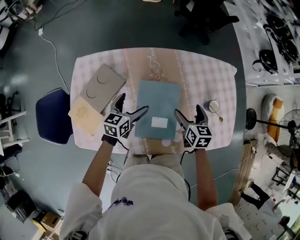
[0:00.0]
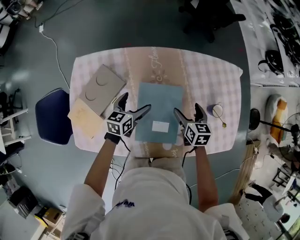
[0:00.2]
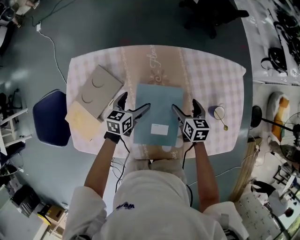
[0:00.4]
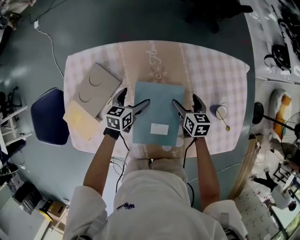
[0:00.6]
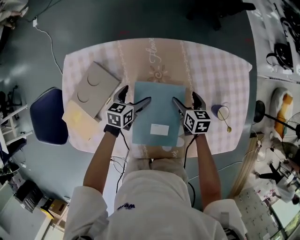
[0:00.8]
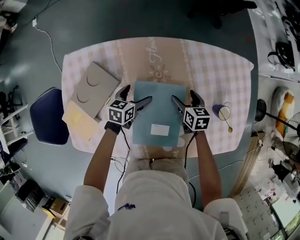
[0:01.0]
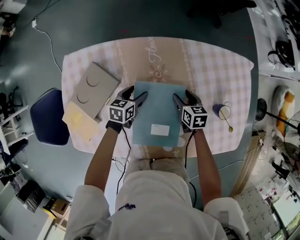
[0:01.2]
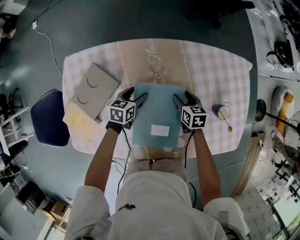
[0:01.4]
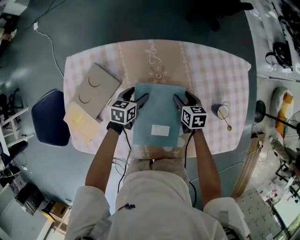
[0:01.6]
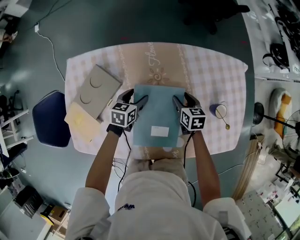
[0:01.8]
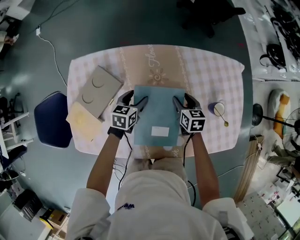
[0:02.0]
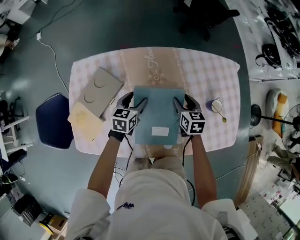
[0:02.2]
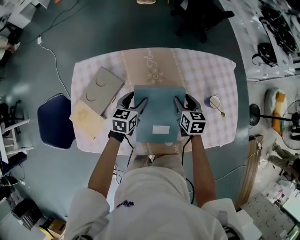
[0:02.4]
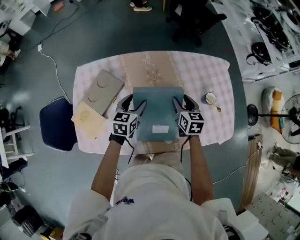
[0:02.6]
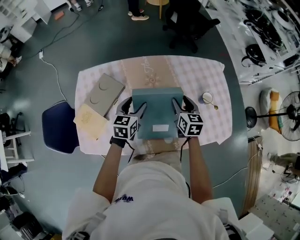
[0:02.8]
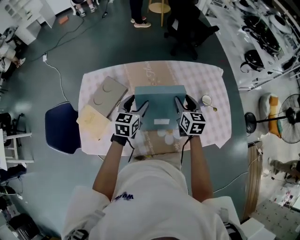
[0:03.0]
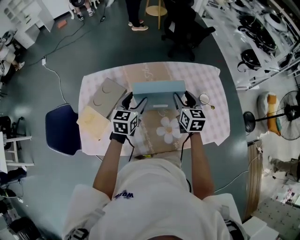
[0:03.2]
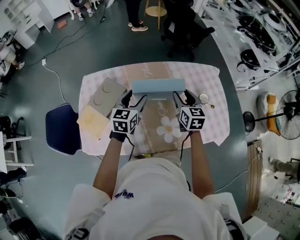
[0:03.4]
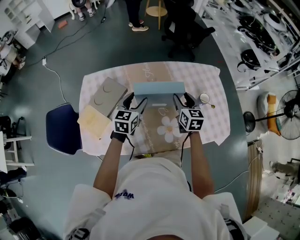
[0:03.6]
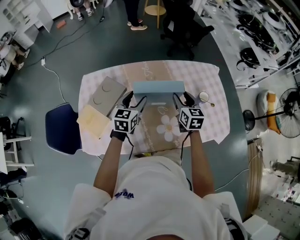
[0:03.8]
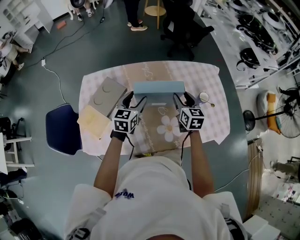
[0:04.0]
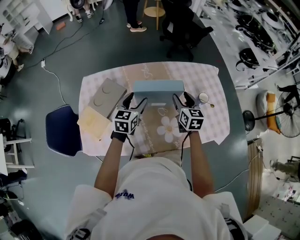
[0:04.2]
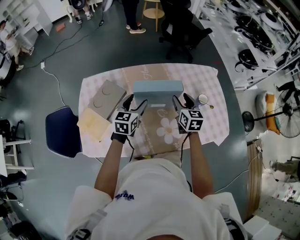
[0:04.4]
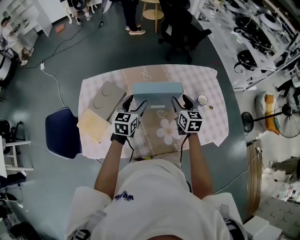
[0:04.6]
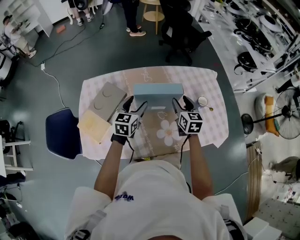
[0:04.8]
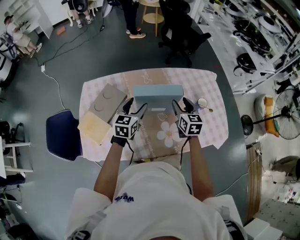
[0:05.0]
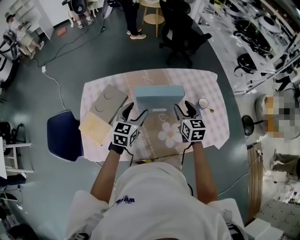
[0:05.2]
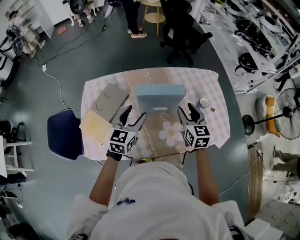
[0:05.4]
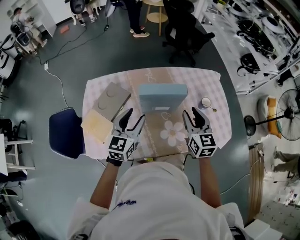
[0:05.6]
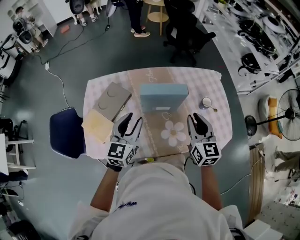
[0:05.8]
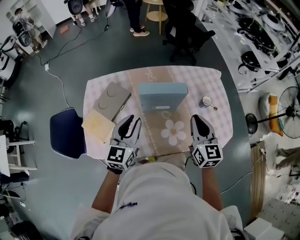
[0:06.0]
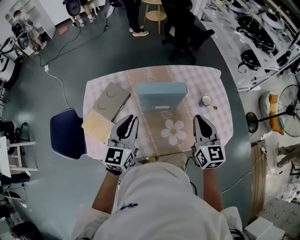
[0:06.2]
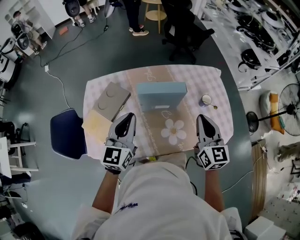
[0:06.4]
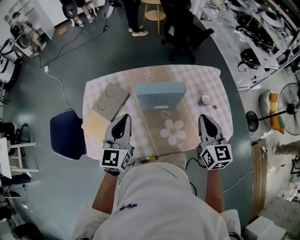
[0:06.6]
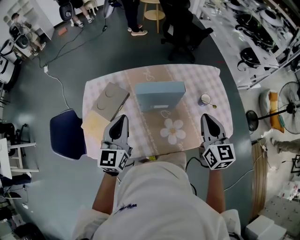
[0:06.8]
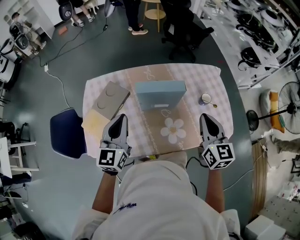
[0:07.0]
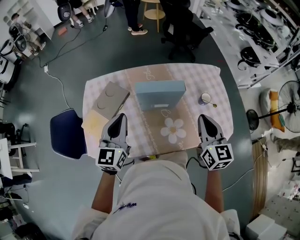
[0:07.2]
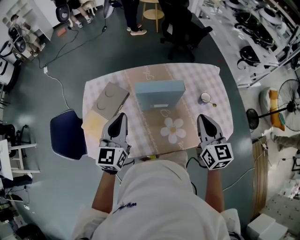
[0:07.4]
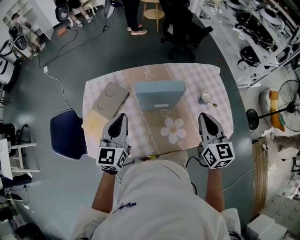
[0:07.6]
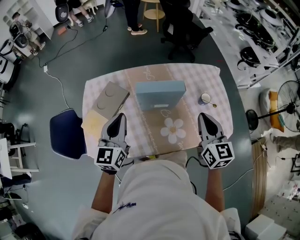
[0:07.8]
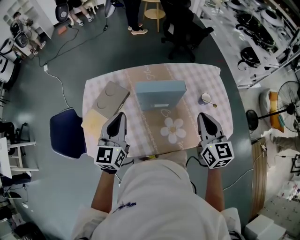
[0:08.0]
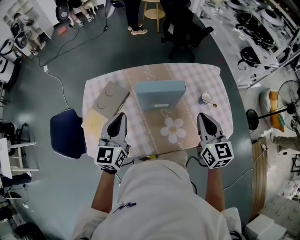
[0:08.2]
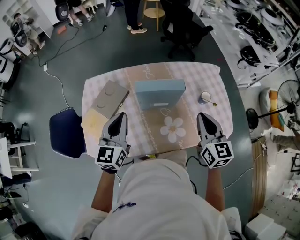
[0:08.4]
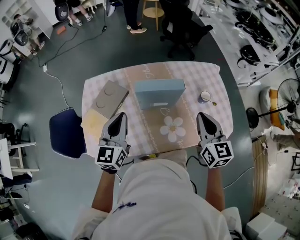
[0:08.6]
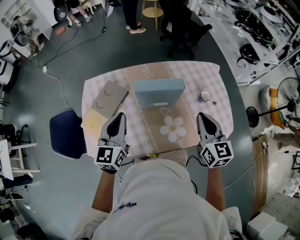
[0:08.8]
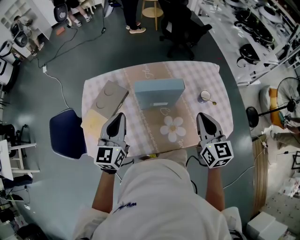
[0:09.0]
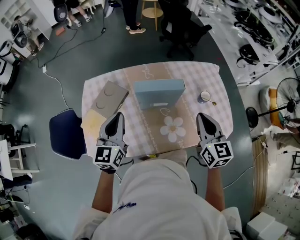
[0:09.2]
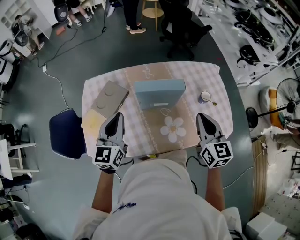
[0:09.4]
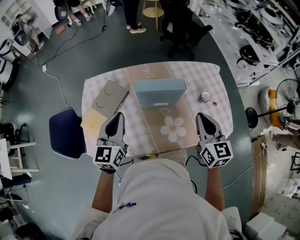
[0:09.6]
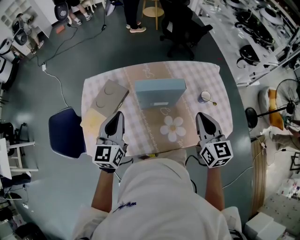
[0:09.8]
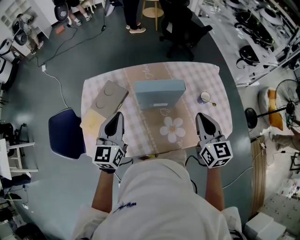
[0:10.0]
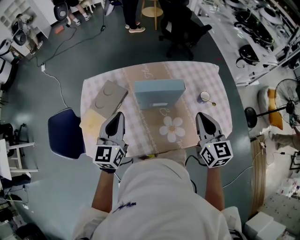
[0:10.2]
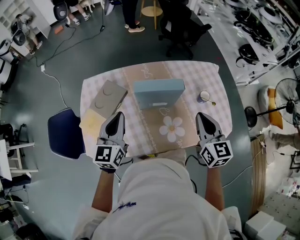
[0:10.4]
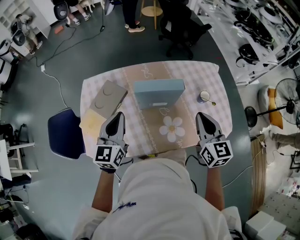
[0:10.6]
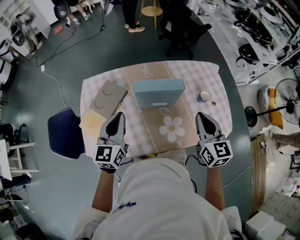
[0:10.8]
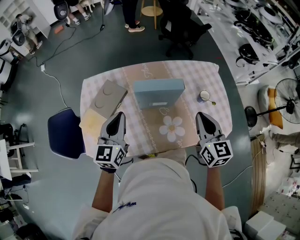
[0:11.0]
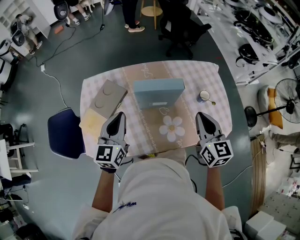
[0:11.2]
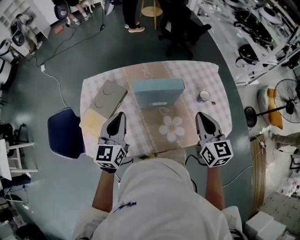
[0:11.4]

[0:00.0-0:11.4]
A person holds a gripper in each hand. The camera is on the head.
0:00.0 to 0:01.4: Both grippers travel together downward and forward, roughly 15 cm. The left gripper closes up, while the right gripper closes.
0:01.4 to 0:02.8: Both grippers move upward and backward, some 20 cm. The right gripper changes its angle by approximately 30 degrees. Meanwhile the left gripper swivels roughly 20 degrees.
0:04.2 to 0:05.6: Both grippers travel together backward and upward, approximately 10 cm.
0:05.6 to 0:07.2: The left gripper travels upward by about 5 cm, and closes up; the right gripper changes place by some 10 cm.
0:07.2 to 0:08.6: Both grippers stay about where they are.
0:08.6 to 0:11.4: The grippers stay close to where they were, moving slightly.

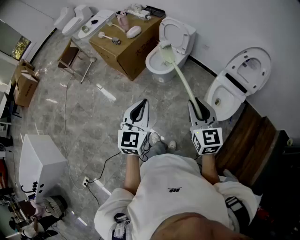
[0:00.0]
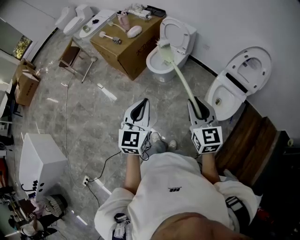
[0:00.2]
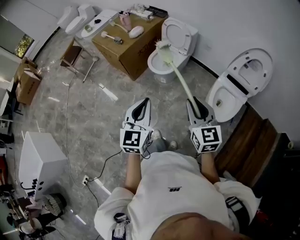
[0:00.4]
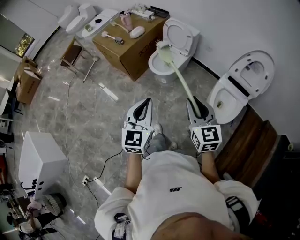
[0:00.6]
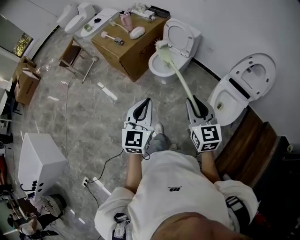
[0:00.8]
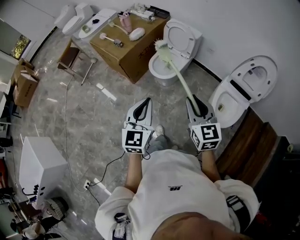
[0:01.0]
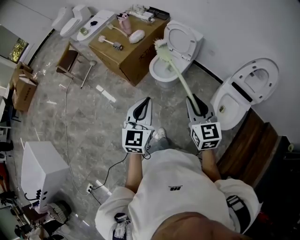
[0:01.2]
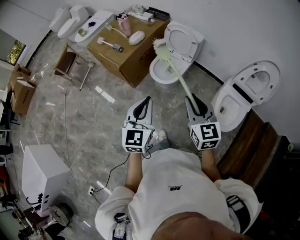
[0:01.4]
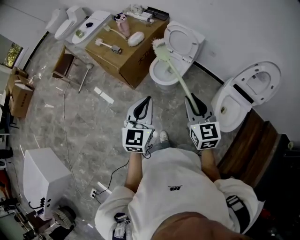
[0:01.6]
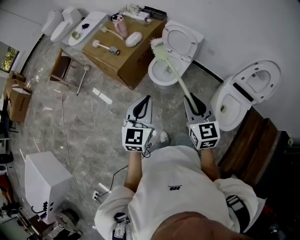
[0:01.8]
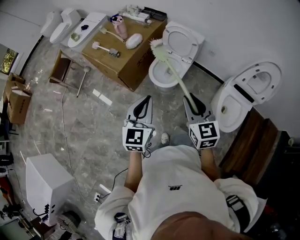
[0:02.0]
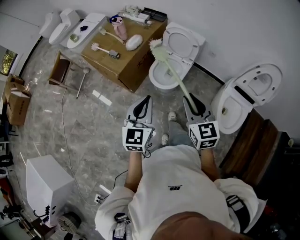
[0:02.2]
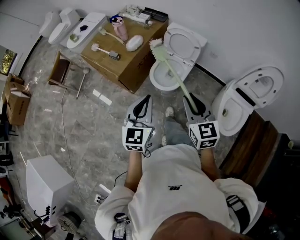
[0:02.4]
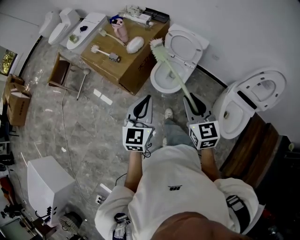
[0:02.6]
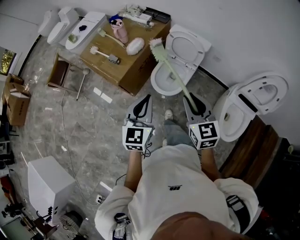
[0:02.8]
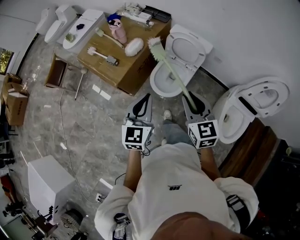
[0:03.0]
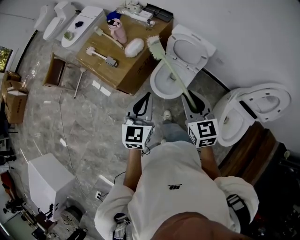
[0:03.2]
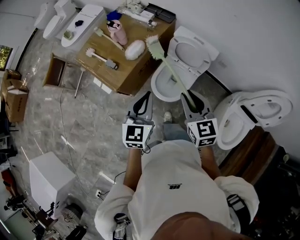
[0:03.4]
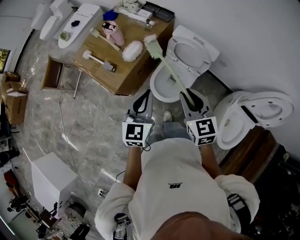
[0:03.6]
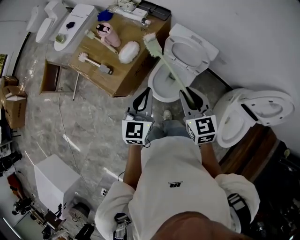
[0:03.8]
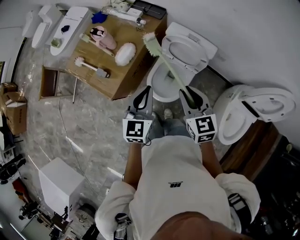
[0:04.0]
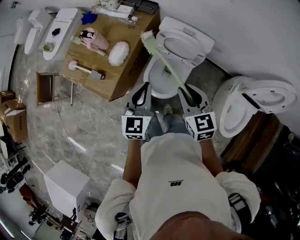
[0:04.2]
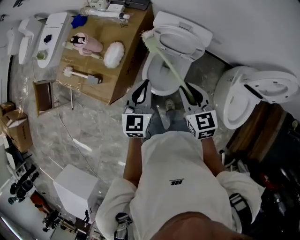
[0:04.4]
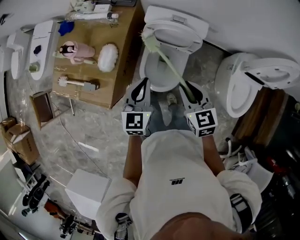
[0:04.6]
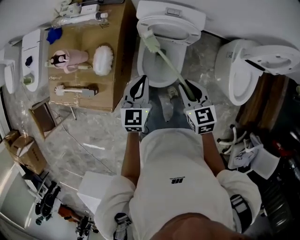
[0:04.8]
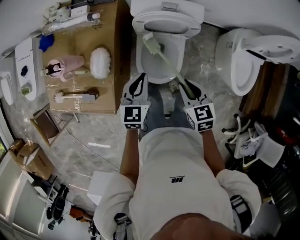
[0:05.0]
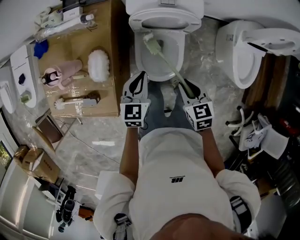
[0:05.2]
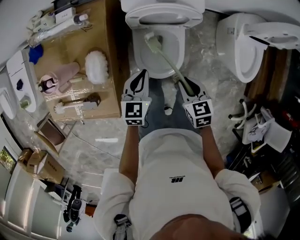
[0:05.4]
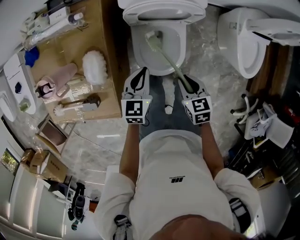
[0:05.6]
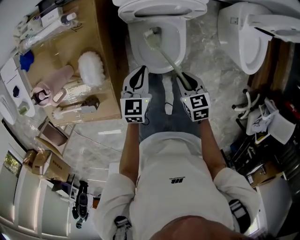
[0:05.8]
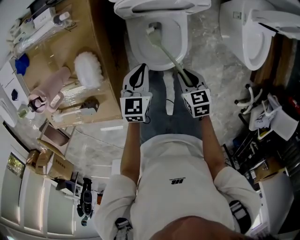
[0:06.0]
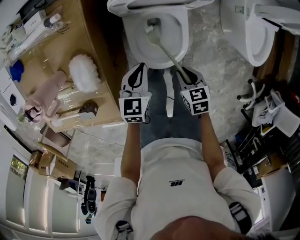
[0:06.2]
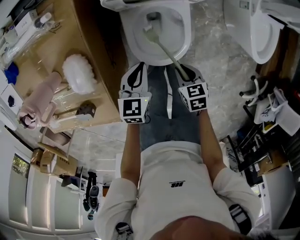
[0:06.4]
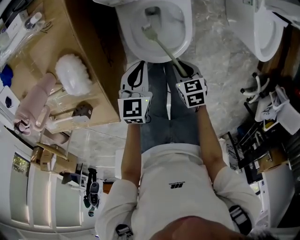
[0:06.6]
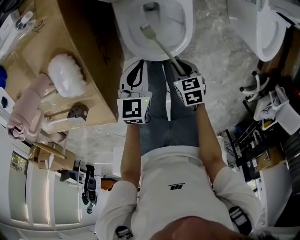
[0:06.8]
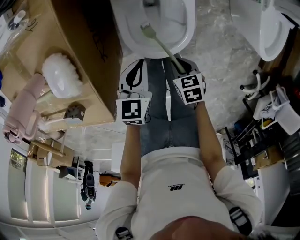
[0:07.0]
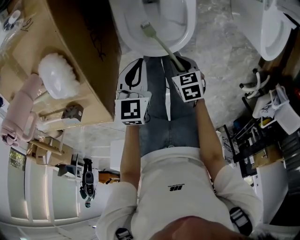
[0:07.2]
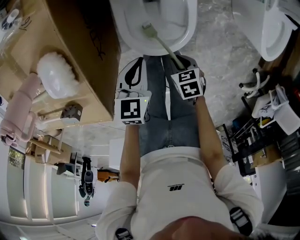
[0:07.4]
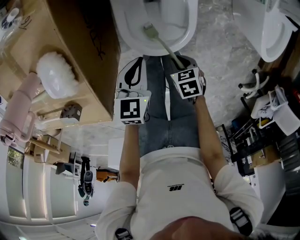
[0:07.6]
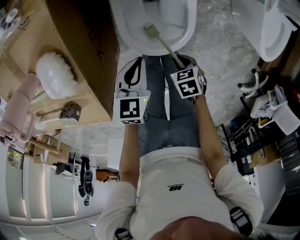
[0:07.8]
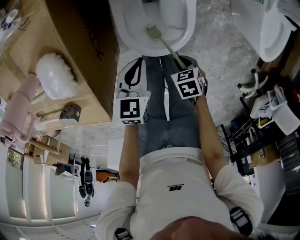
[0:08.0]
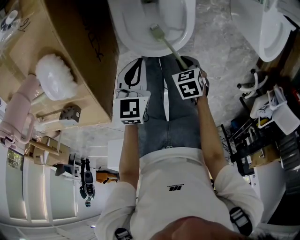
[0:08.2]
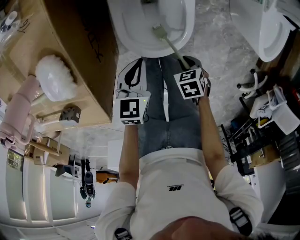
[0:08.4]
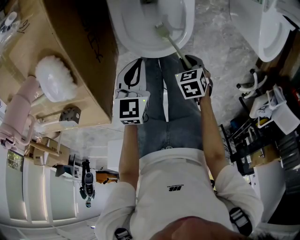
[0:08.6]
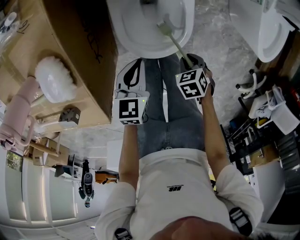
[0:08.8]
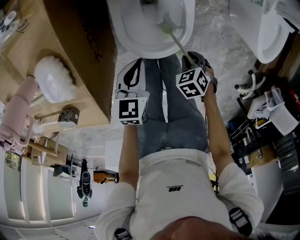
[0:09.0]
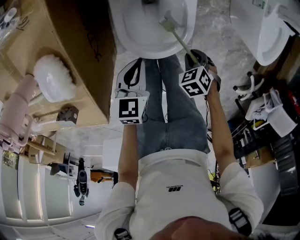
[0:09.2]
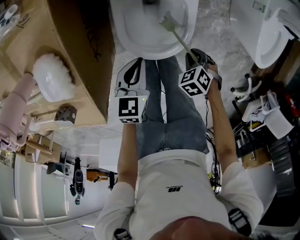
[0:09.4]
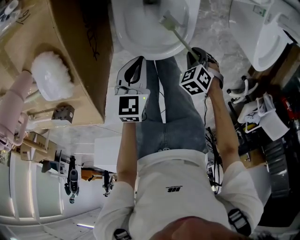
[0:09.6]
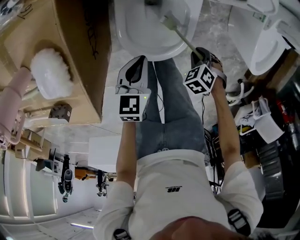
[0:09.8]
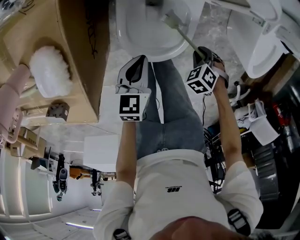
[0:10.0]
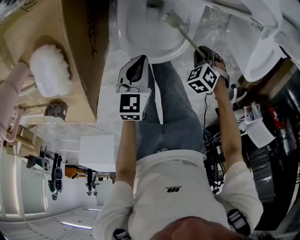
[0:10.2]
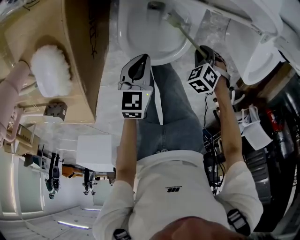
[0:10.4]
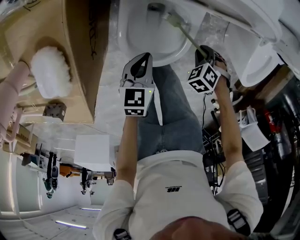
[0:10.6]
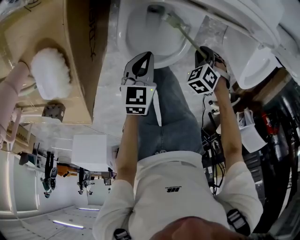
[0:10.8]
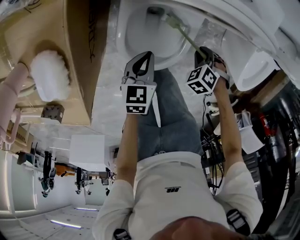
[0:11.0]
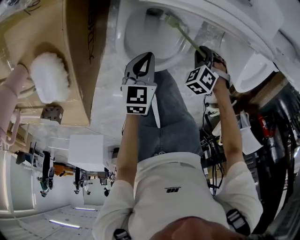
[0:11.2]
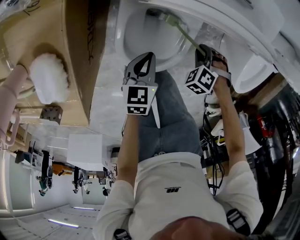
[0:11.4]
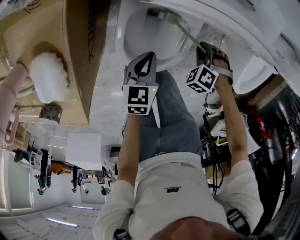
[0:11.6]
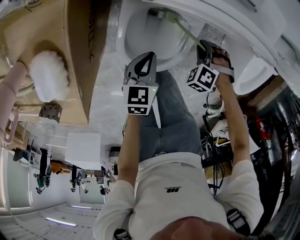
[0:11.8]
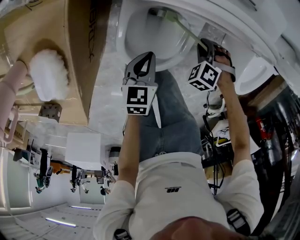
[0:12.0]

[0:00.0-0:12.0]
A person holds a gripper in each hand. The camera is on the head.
0:00.0 to 0:01.6: The left gripper heads forward, covering approximately 20 cm; the right gripper is displaced forward and to the left by roughly 20 cm.
0:01.6 to 0:03.0: The grippers both shift forward by roughly 20 cm.
0:03.0 to 0:04.4: The left gripper heads forward, covering roughly 25 cm, while the right gripper goes approximately 25 cm forward and downward.
0:04.4 to 0:06.0: The grippers both shift downward by approximately 30 cm. The left gripper swivels some 30 degrees. Meanwhile the right gripper rotates approximately 40 degrees.
0:06.0 to 0:07.6: Both grippers move downward, about 15 cm. The right gripper turns by approximately 20 degrees.
0:07.6 to 0:09.0: The right gripper shifts by approximately 5 cm, and changes its angle by about 30 degrees.
0:09.0 to 0:10.4: The right gripper shifts by about 10 cm, and changes its angle by some 30 degrees.
0:10.4 to 0:12.0: The right gripper shifts by roughly 10 cm, and rotates about 20 degrees. Meanwhile the left gripper changes place by some 5 cm.
